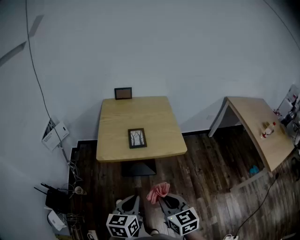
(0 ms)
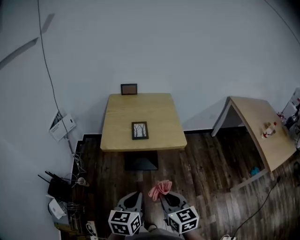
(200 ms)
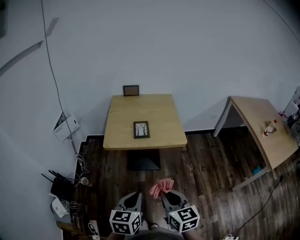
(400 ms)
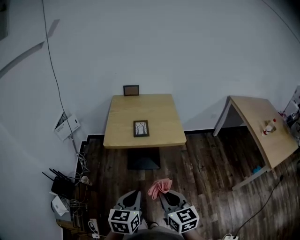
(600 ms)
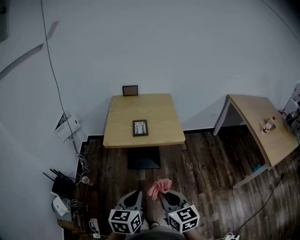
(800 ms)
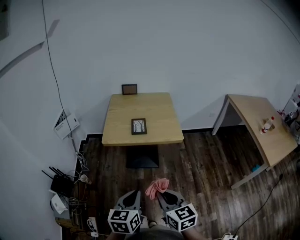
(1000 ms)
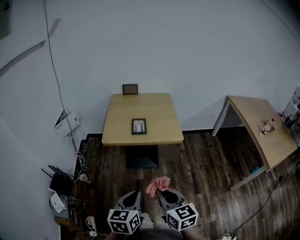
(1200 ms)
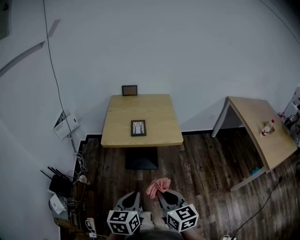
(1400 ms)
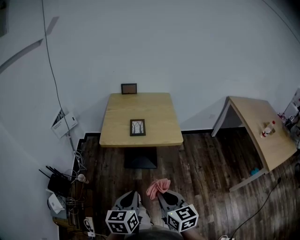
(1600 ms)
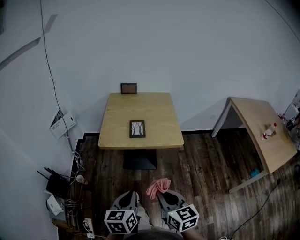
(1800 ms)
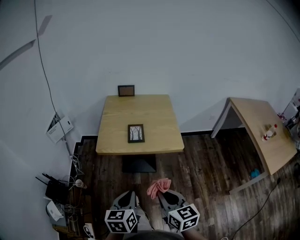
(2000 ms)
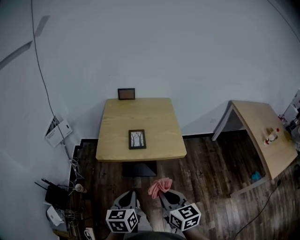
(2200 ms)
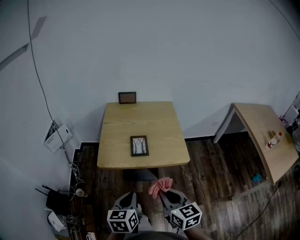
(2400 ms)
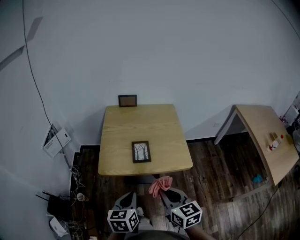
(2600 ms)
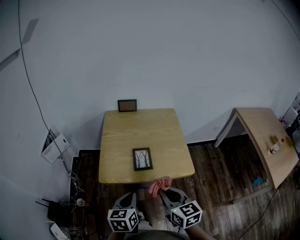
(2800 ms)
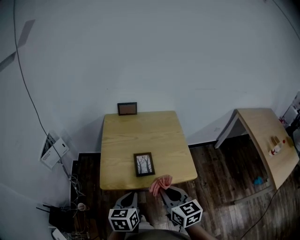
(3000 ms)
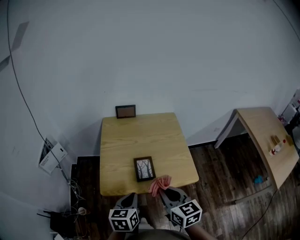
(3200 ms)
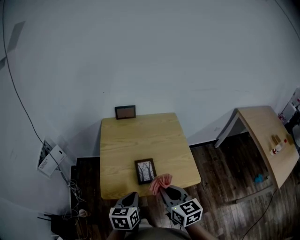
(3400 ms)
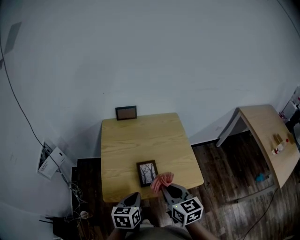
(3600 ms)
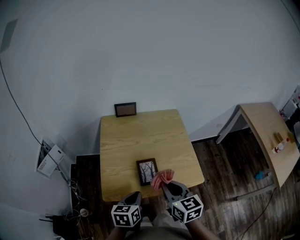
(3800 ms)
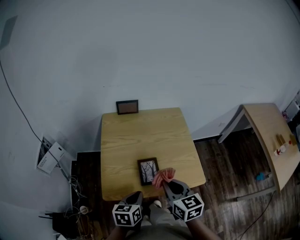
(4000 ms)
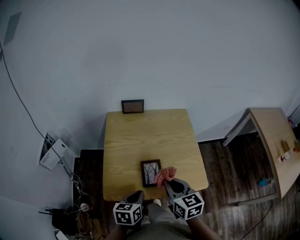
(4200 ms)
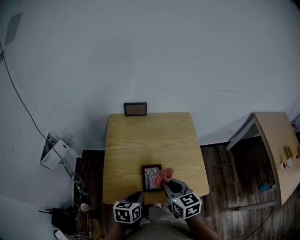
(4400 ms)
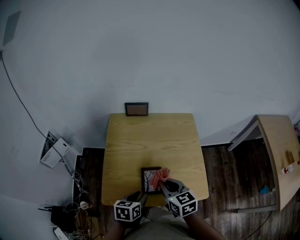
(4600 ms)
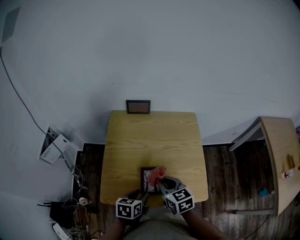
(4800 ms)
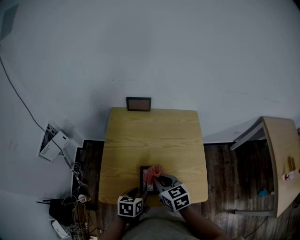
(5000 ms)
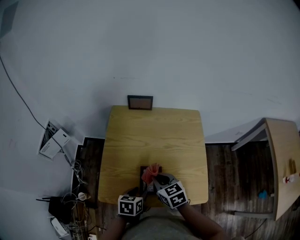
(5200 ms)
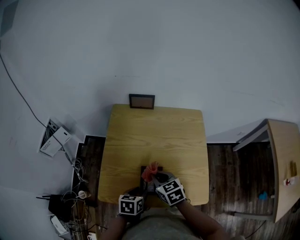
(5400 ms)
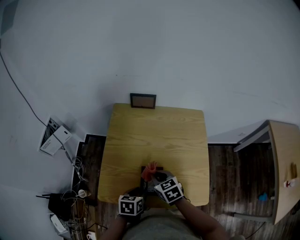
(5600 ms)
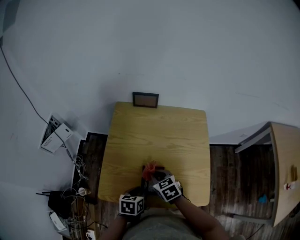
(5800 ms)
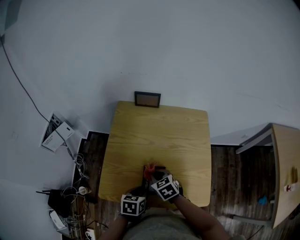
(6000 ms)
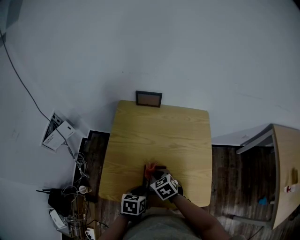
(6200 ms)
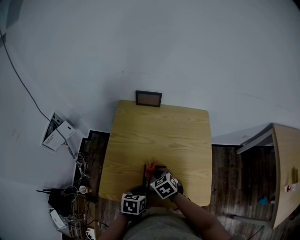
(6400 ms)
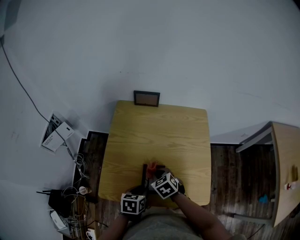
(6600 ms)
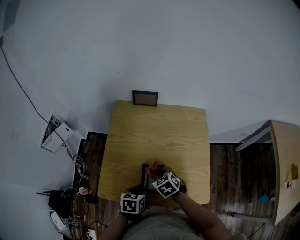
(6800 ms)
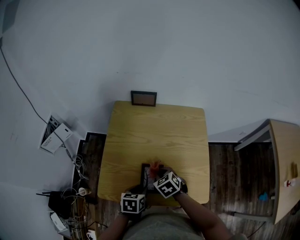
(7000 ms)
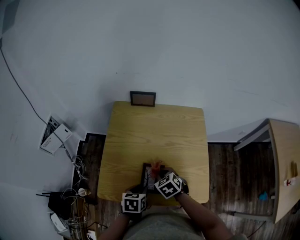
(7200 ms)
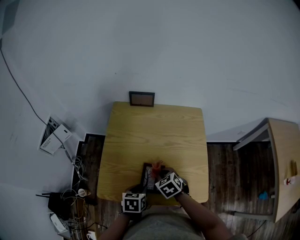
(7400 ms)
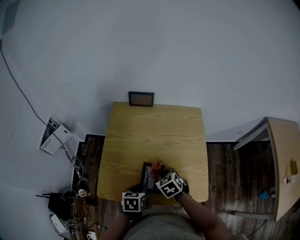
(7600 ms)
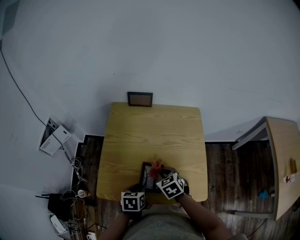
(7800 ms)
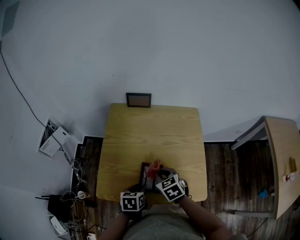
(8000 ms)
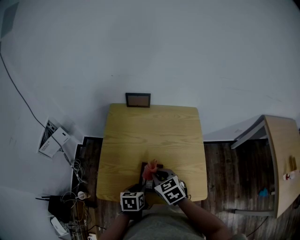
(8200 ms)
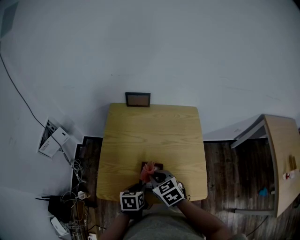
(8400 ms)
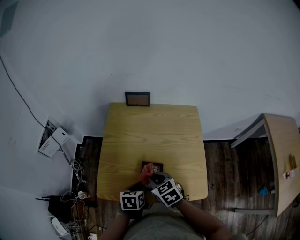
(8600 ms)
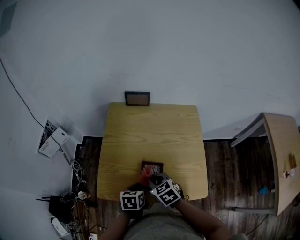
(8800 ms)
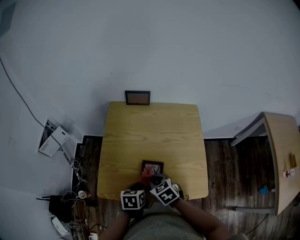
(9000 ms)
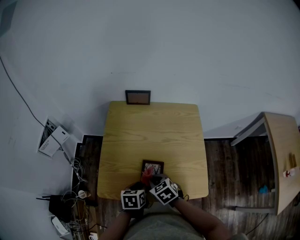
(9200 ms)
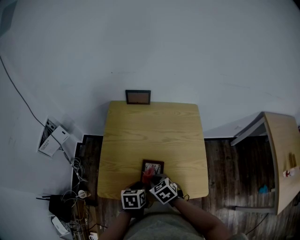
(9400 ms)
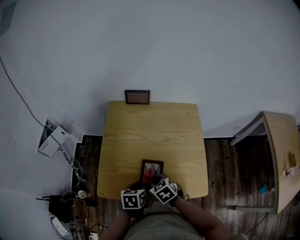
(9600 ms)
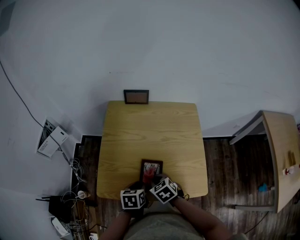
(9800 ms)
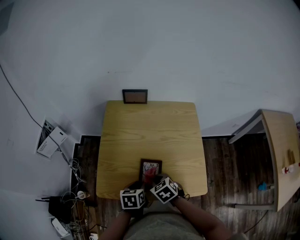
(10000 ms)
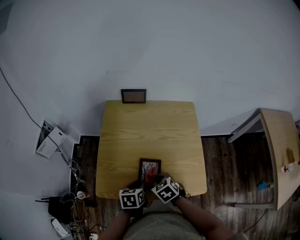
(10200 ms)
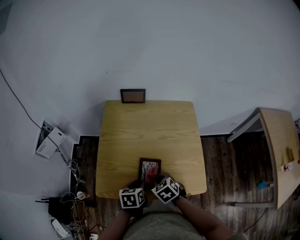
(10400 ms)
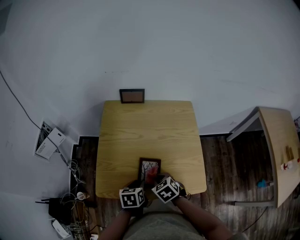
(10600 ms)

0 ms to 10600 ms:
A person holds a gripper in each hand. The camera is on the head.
0 ms to 1600 ms: Both grippers travel together backward, roughly 10 cm.
1600 ms to 3000 ms: The grippers both shift forward by some 30 cm.
3000 ms to 4600 ms: The grippers both shift forward and downward by approximately 20 cm.
4600 ms to 6000 ms: The right gripper moves downward and forward, approximately 15 cm, and swivels about 30 degrees, while the left gripper is displaced downward by approximately 5 cm.
6000 ms to 7600 ms: The right gripper moves to the right, approximately 5 cm.
7600 ms to 9000 ms: The right gripper shifts by approximately 5 cm.
9000 ms to 10600 ms: The grippers make only small movements.

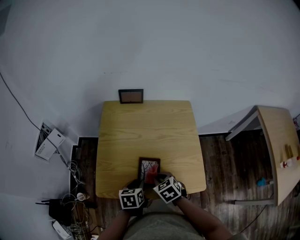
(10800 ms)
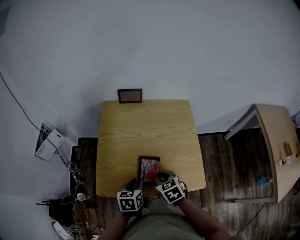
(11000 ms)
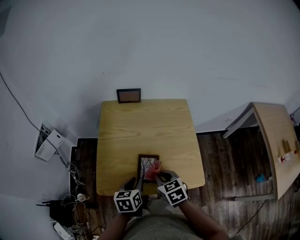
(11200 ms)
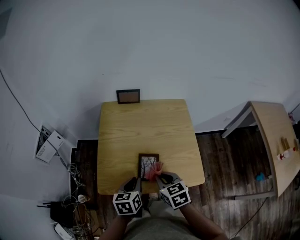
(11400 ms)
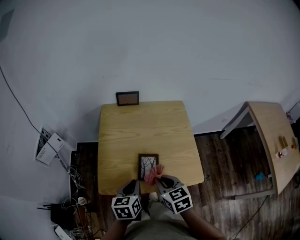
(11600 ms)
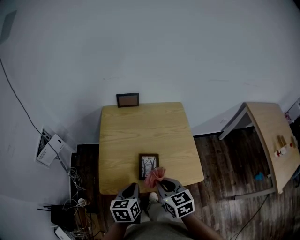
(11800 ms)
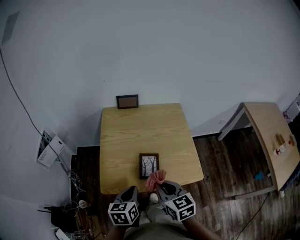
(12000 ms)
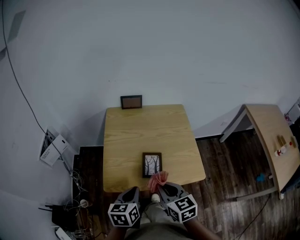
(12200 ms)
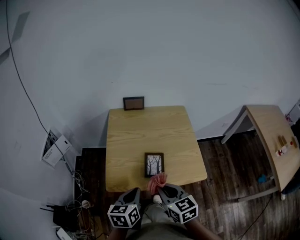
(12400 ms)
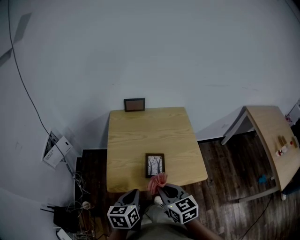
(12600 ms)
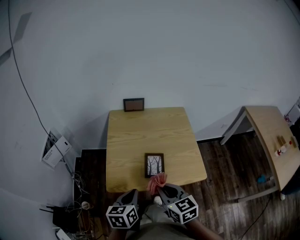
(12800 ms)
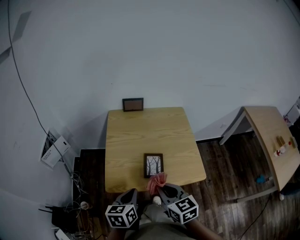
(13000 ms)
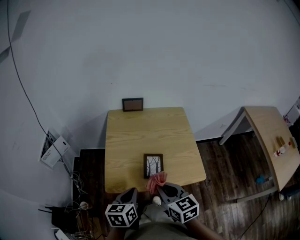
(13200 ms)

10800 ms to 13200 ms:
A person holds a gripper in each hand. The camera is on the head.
10800 ms to 12000 ms: The grippers both shift upward and backward by about 15 cm. The left gripper closes up, while the right gripper rotates roughly 30 degrees.
12000 ms to 13200 ms: There are only small adjustments of the grippers.

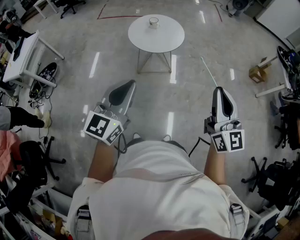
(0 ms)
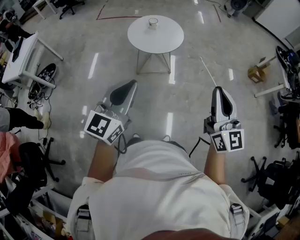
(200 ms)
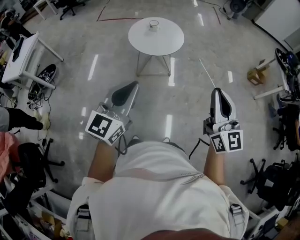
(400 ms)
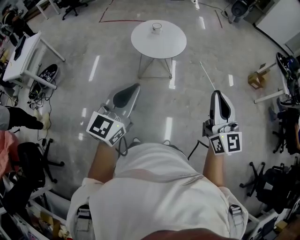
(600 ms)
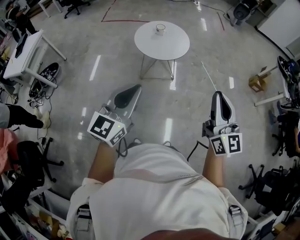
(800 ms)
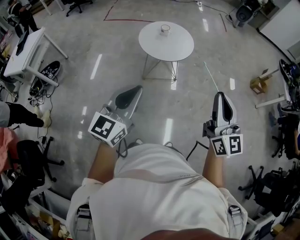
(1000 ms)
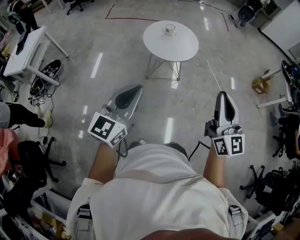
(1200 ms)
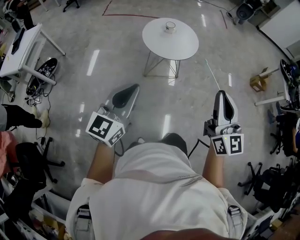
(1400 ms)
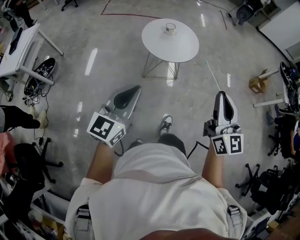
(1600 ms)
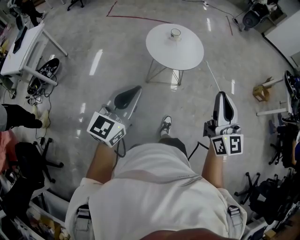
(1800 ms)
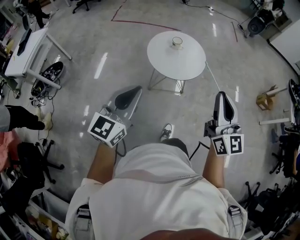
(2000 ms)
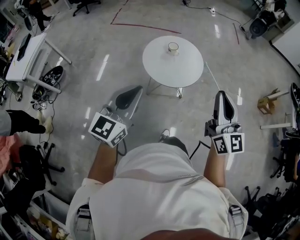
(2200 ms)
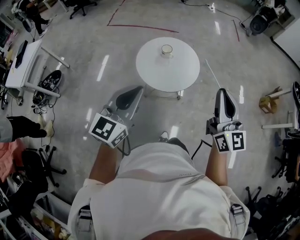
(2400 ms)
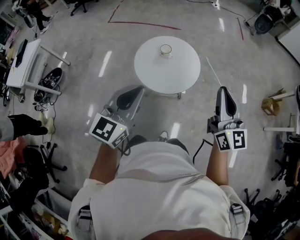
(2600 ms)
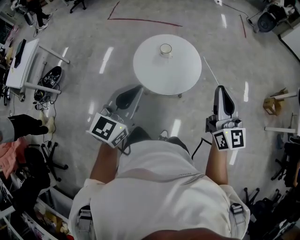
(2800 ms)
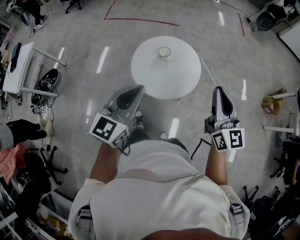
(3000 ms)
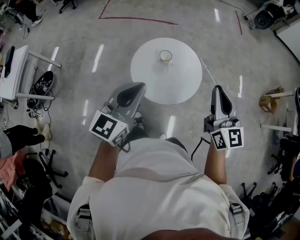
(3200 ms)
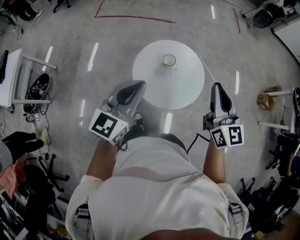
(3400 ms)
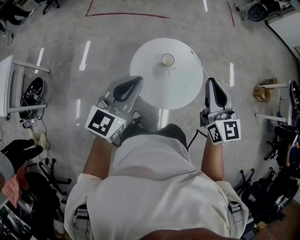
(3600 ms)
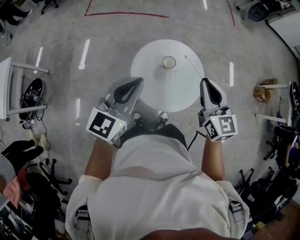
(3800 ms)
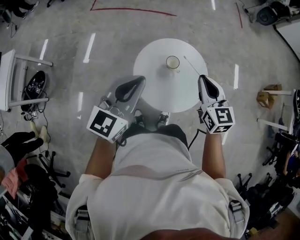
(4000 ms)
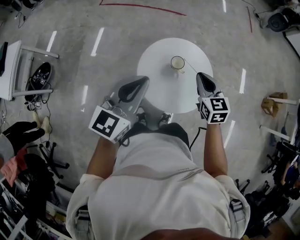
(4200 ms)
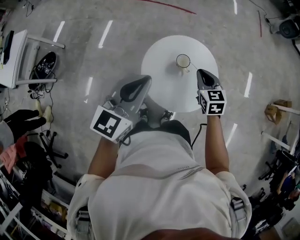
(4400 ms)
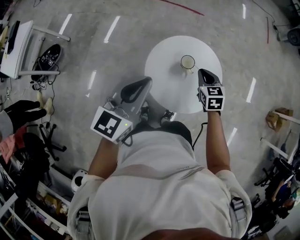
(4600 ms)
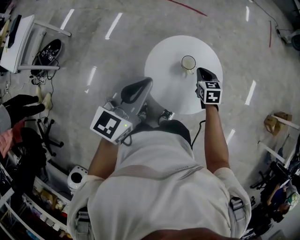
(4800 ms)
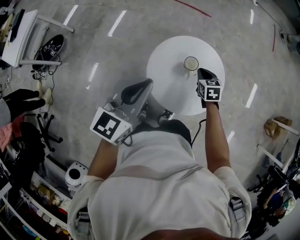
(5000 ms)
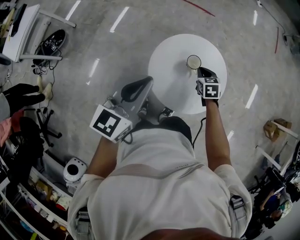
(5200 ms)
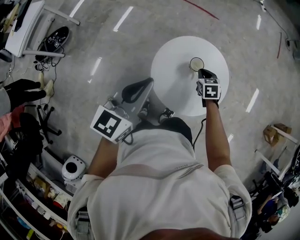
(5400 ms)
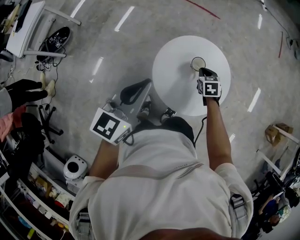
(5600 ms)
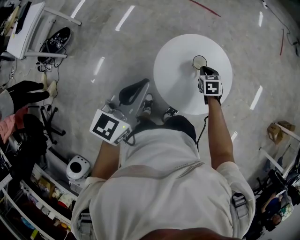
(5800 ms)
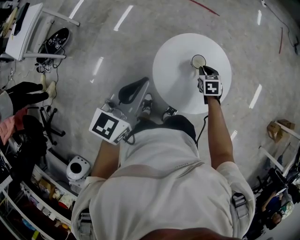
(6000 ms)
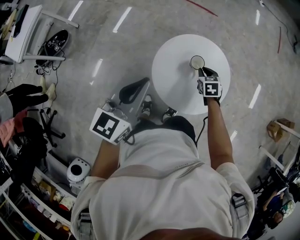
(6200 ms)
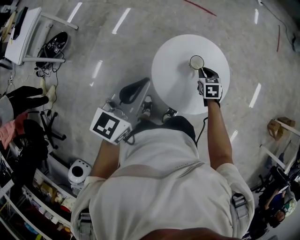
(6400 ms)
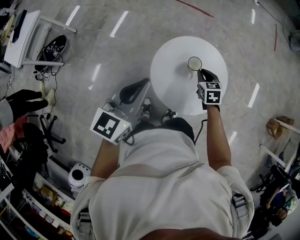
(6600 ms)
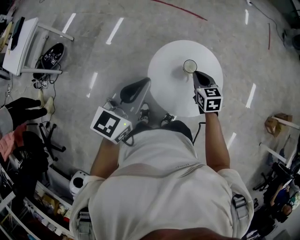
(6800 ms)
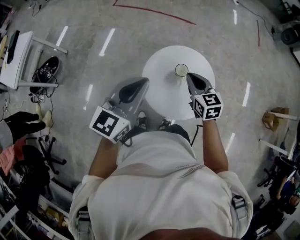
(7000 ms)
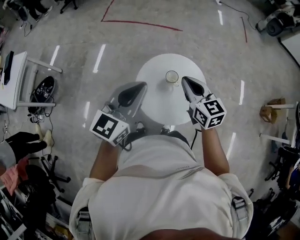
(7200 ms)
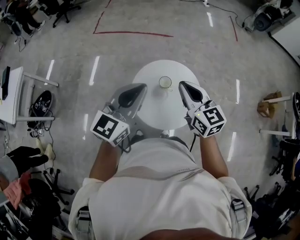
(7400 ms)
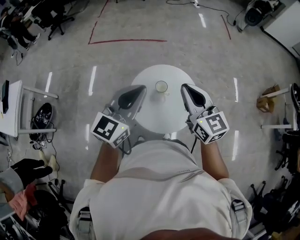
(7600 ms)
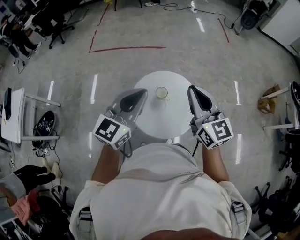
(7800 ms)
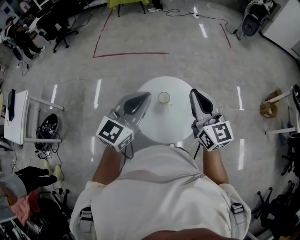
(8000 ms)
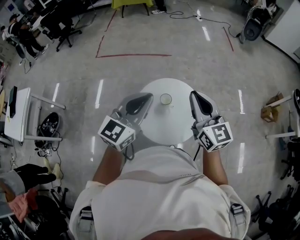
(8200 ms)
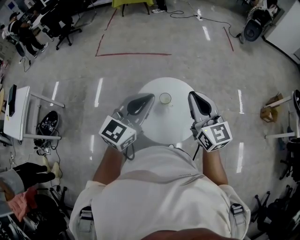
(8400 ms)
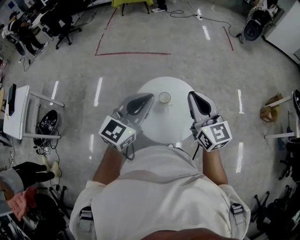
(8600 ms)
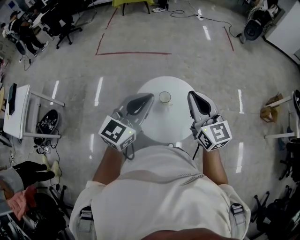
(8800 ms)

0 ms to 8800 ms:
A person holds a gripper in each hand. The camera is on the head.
0 ms to 1400 ms: Both grippers travel together to the left, roughly 15 cm.
1400 ms to 3000 ms: The two grippers travel together, forward, approximately 50 cm.
3000 ms to 4400 ms: The left gripper shifts roughly 25 cm forward and to the left. The right gripper heads forward, downward and to the left, covering about 40 cm, and tilts its fingers approximately 40 degrees downward.
4400 ms to 5800 ms: The left gripper goes some 5 cm to the left, while the right gripper moves downward, roughly 15 cm.
5800 ms to 7400 ms: The right gripper travels upward by roughly 35 cm, and angles its fingers upward, by approximately 40 degrees, while the left gripper heads upward and to the right, covering approximately 10 cm, and rotates roughly 20 degrees.
7400 ms to 8800 ms: The right gripper is displaced to the right and upward by about 10 cm; the left gripper moves to the right, about 5 cm.

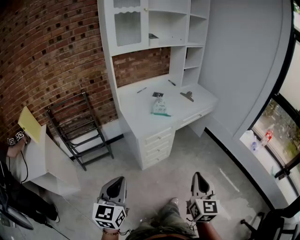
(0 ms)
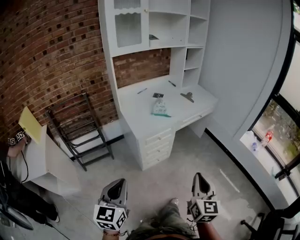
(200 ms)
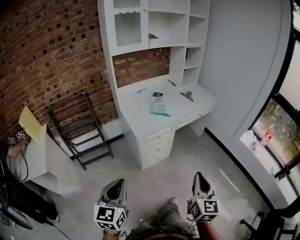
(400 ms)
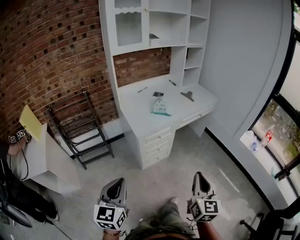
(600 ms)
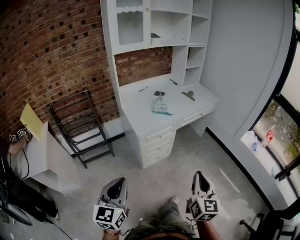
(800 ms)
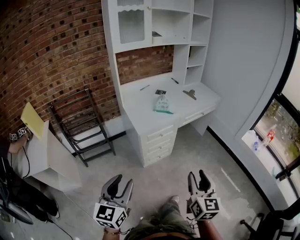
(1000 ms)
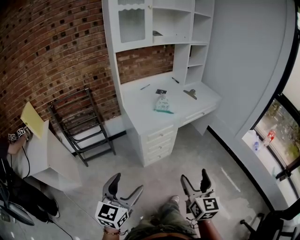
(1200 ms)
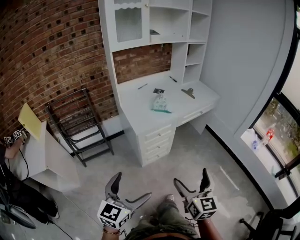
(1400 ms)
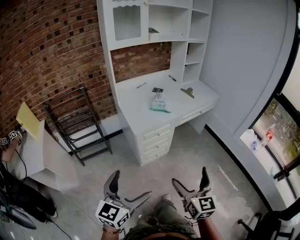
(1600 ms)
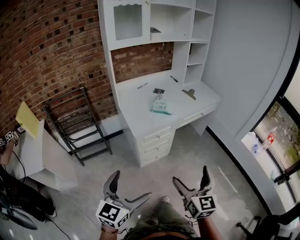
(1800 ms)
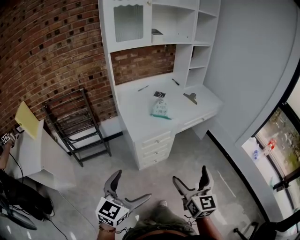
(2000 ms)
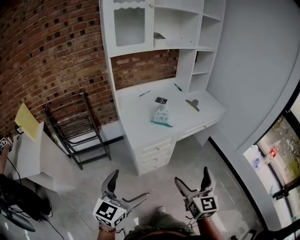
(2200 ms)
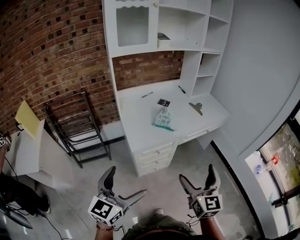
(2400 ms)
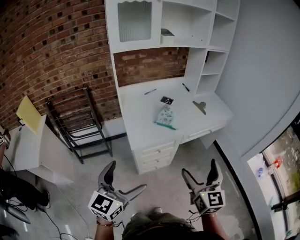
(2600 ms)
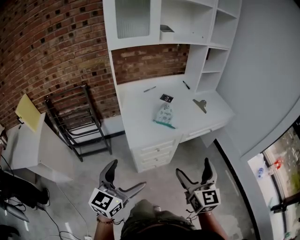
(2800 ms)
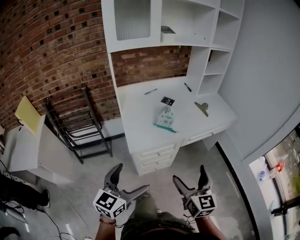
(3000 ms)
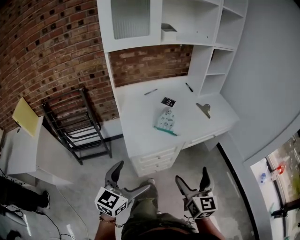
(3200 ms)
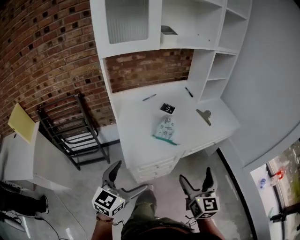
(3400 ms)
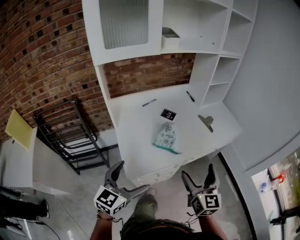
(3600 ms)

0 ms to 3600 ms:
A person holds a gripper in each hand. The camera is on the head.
0 ms to 1800 ms: The left gripper moves to the right, roughly 10 cm, and opens its fingers. Meanwhile the right gripper ends up roughly 5 cm from where it was, and opens.
1800 ms to 3600 ms: The grippers both shift forward by some 40 cm.
